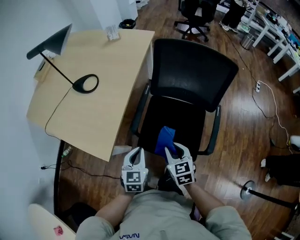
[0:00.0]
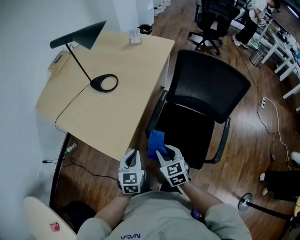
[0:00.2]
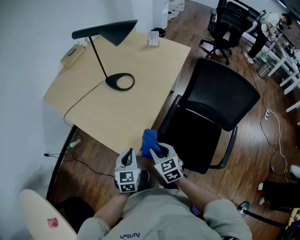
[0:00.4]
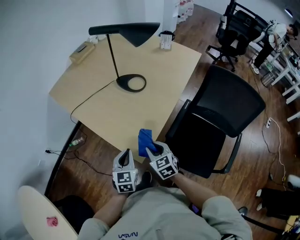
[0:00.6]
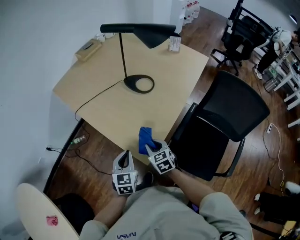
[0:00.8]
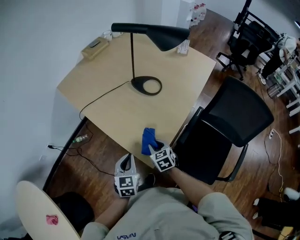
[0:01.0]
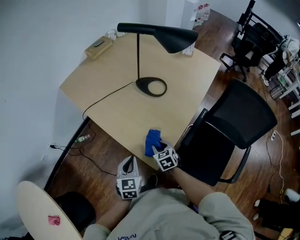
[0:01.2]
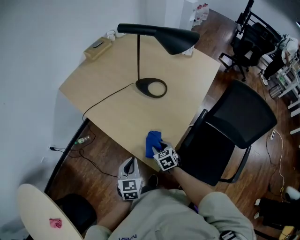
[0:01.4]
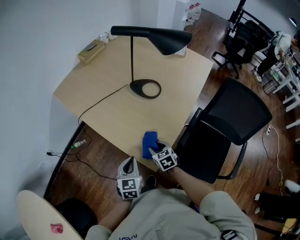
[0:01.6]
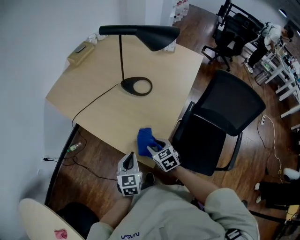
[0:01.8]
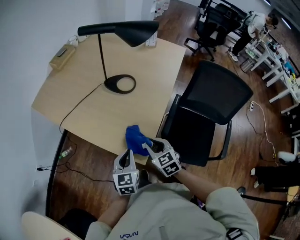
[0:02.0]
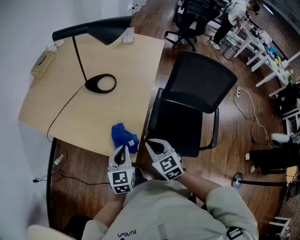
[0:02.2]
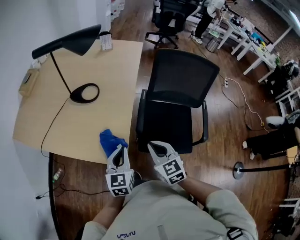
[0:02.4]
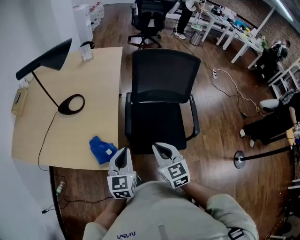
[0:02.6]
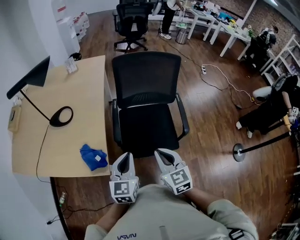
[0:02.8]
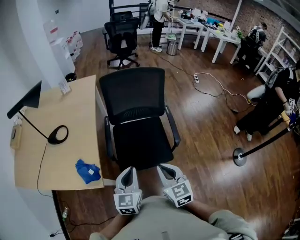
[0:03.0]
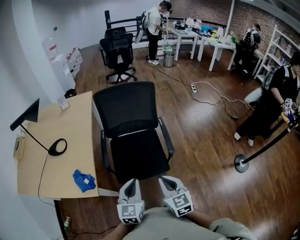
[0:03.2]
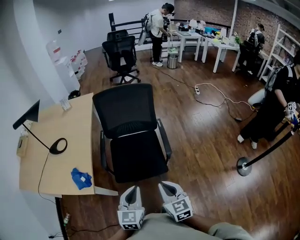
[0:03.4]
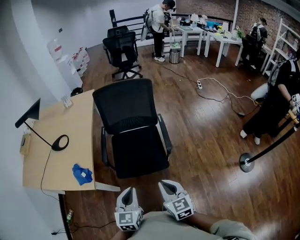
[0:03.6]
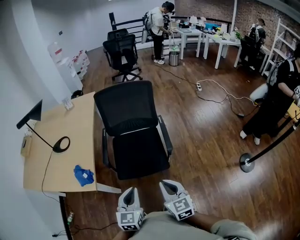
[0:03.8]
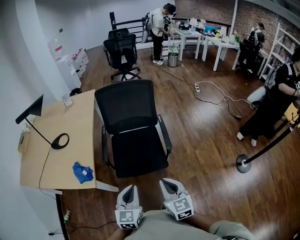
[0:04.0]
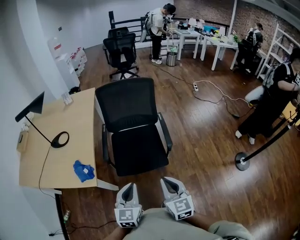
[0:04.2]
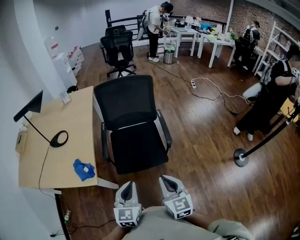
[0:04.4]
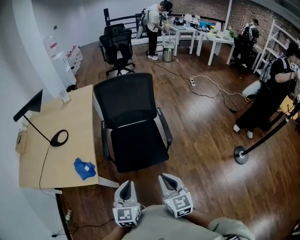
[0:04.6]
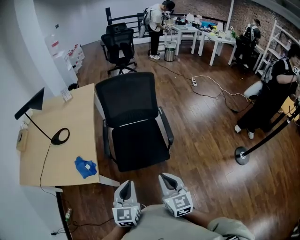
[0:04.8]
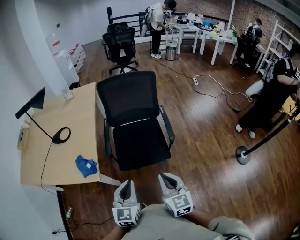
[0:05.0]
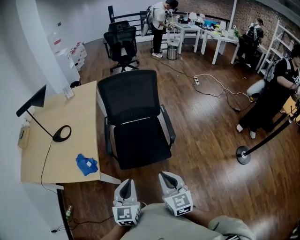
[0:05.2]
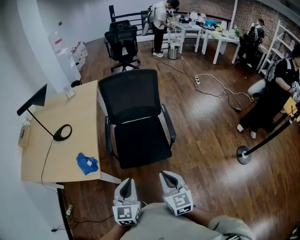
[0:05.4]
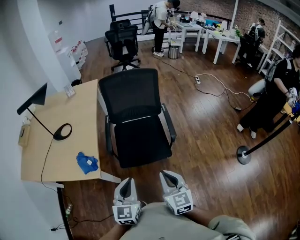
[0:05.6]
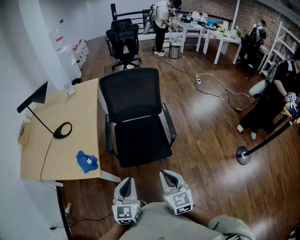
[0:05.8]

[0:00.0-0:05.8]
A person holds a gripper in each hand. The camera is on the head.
0:00.0 to 0:01.4: The right gripper shifts by about 40 cm, and swivels roughly 30 degrees. Meanwhile the left gripper ends up about 40 cm from where it was, and turns by approximately 20 degrees.
0:01.4 to 0:02.8: The left gripper moves roughly 35 cm, and changes its angle by some 50 degrees; the right gripper changes place by some 40 cm, rotates roughly 50 degrees, and closes its fingers.
0:02.8 to 0:04.4: The right gripper moves to the right and backward, roughly 25 cm; the left gripper is displaced backward and to the right by roughly 20 cm.
0:04.4 to 0:05.8: There are only small adjustments of the grippers.

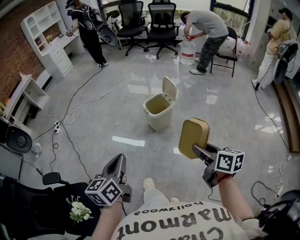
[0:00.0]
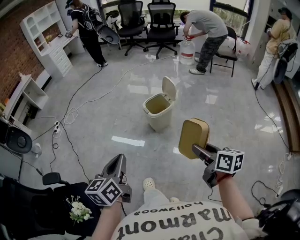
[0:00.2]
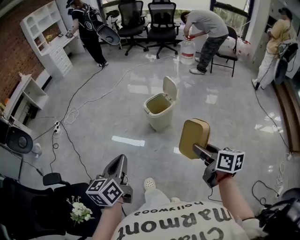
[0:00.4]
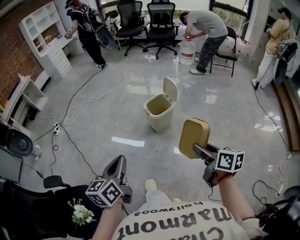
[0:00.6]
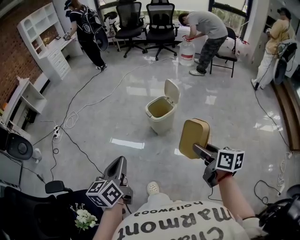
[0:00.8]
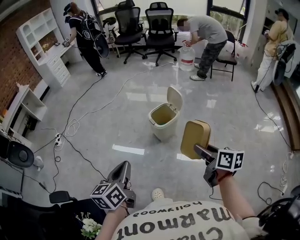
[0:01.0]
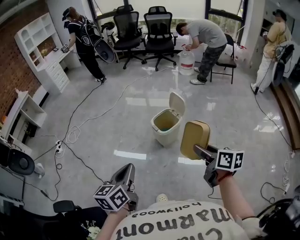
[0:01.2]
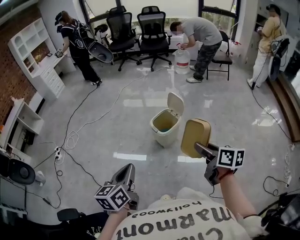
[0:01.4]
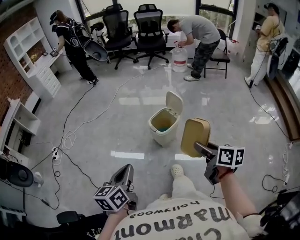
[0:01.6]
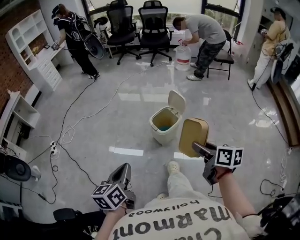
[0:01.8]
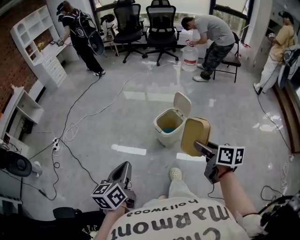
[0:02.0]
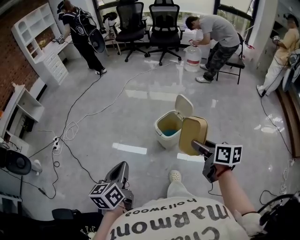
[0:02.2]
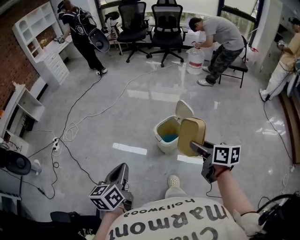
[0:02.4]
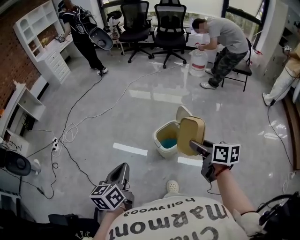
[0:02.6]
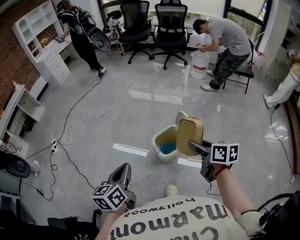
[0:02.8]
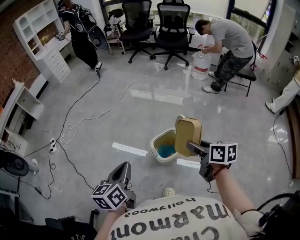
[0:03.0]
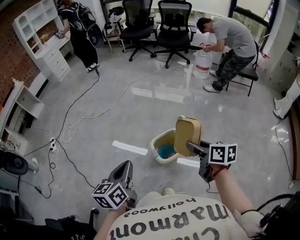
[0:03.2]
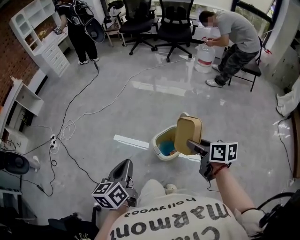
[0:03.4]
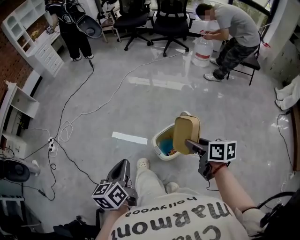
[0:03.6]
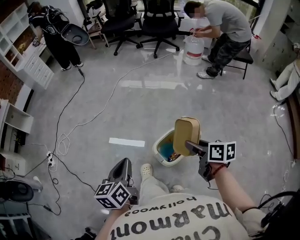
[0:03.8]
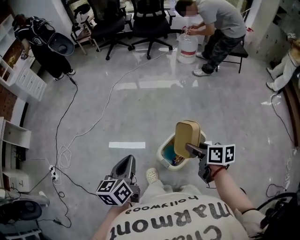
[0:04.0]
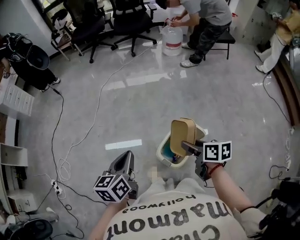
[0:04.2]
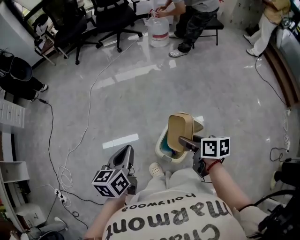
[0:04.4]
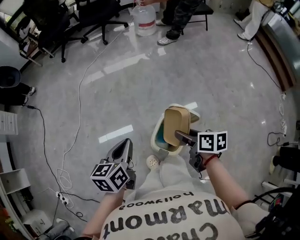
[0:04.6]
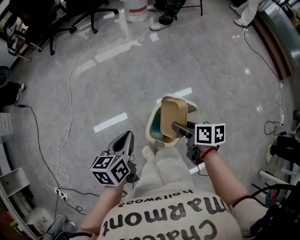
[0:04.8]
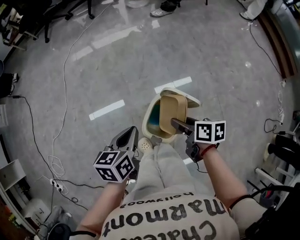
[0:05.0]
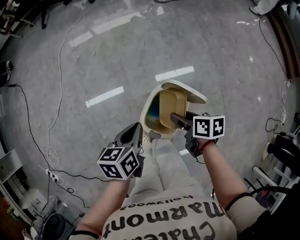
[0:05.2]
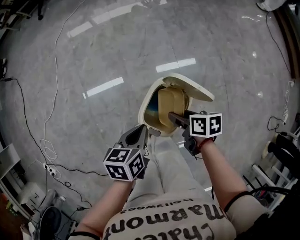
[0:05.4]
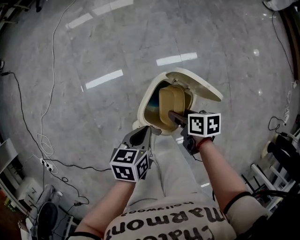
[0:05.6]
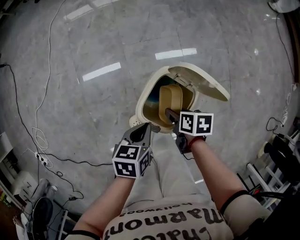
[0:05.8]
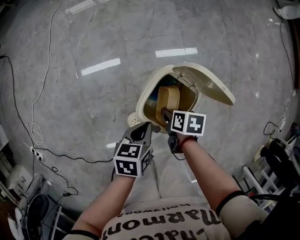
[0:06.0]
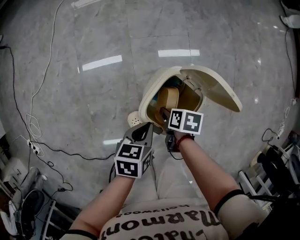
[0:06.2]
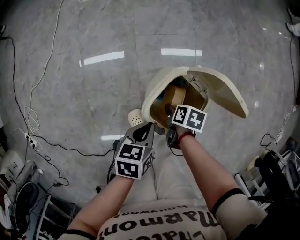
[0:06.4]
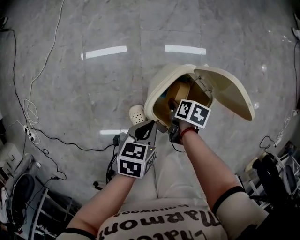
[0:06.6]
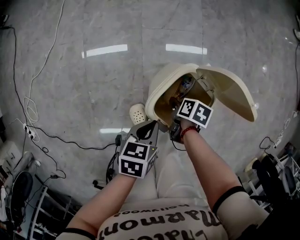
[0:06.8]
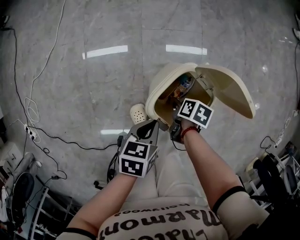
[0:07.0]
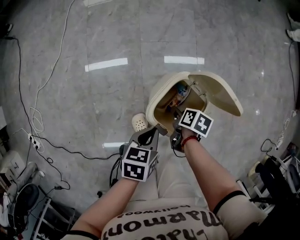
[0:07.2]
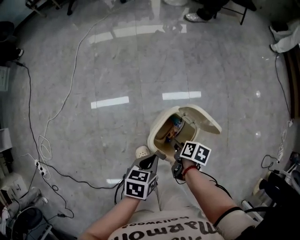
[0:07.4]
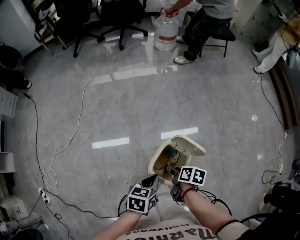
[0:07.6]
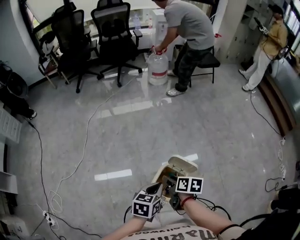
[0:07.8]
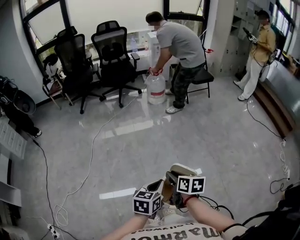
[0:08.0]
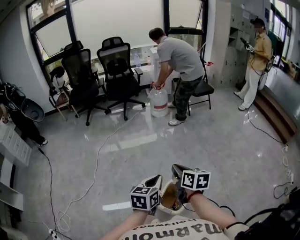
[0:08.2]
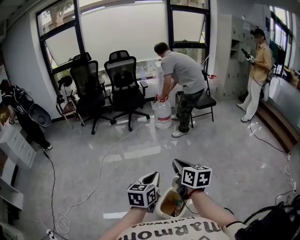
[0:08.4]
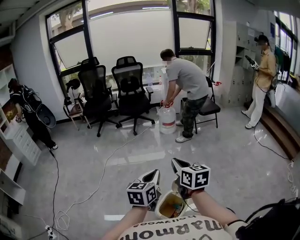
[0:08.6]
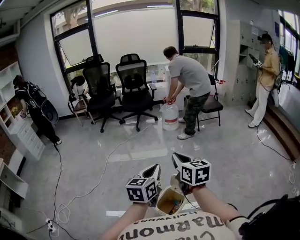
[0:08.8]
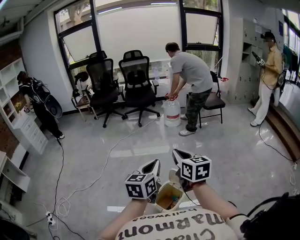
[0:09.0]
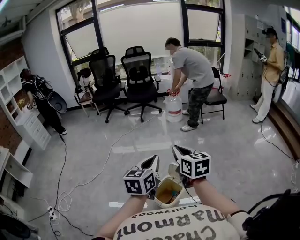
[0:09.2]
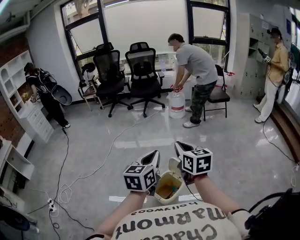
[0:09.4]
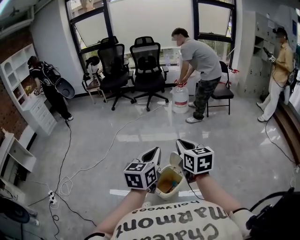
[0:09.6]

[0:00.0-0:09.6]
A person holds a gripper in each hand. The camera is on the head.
0:00.0 to 0:01.6: The two grippers go some 15 cm forward and to the left.
0:01.6 to 0:03.2: Both grippers move forward, some 25 cm.
0:03.2 to 0:04.8: The left gripper changes place by some 30 cm, and changes its angle by some 50 degrees, while the right gripper is displaced downward by roughly 15 cm, and rotates roughly 40 degrees.
0:04.8 to 0:06.4: The two grippers go about 30 cm downward. The left gripper swivels some 20 degrees. The right gripper swivels some 30 degrees.
0:06.4 to 0:08.0: The grippers both shift upward by roughly 35 cm. The right gripper points its fingers roughly 30 degrees further upward, and closes; the left gripper turns by some 30 degrees.
0:08.0 to 0:09.6: The two grippers go approximately 20 cm upward and backward. The right gripper swivels some 40 degrees, and closes its fingers. The left gripper rotates about 30 degrees.

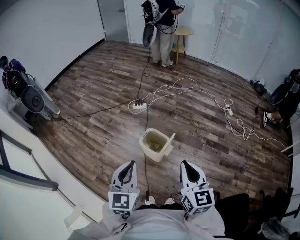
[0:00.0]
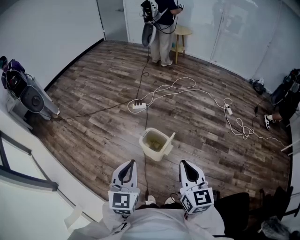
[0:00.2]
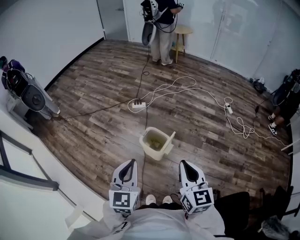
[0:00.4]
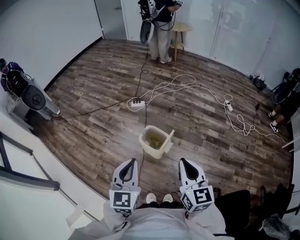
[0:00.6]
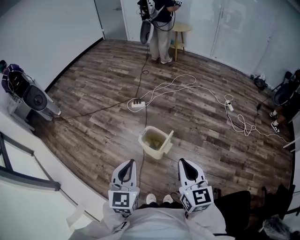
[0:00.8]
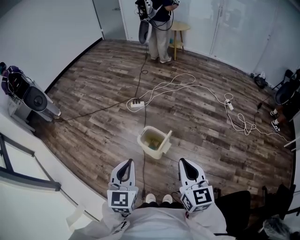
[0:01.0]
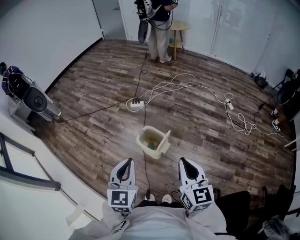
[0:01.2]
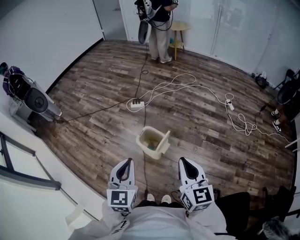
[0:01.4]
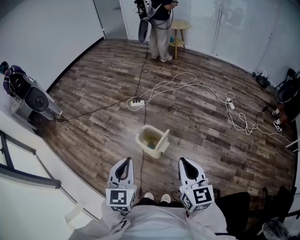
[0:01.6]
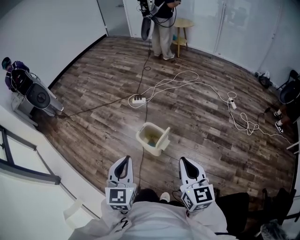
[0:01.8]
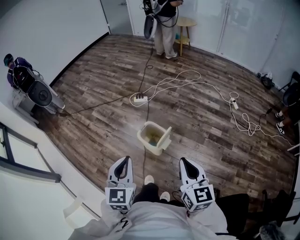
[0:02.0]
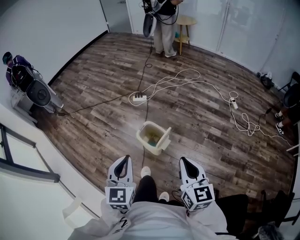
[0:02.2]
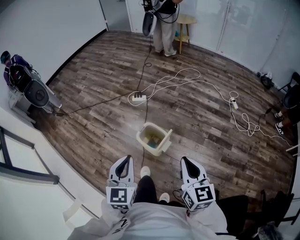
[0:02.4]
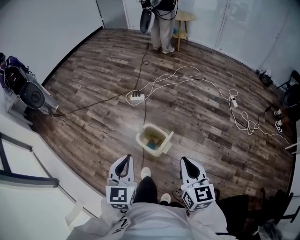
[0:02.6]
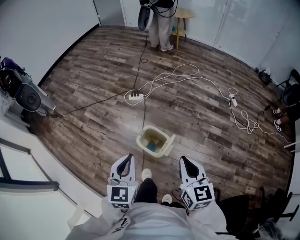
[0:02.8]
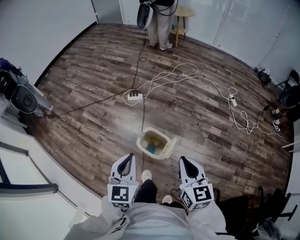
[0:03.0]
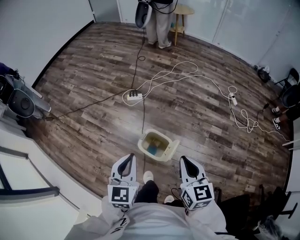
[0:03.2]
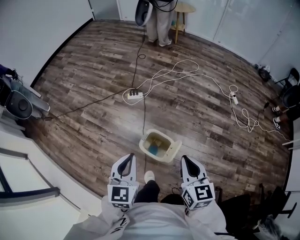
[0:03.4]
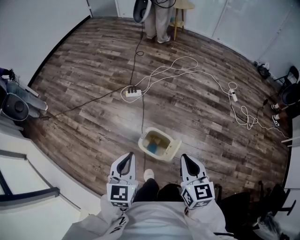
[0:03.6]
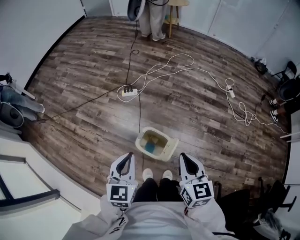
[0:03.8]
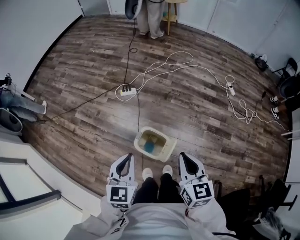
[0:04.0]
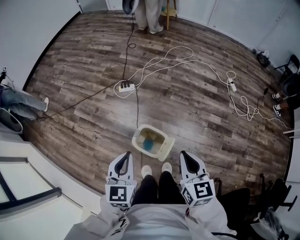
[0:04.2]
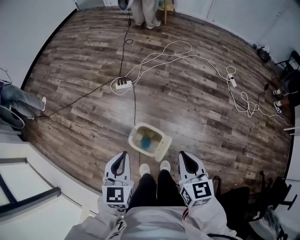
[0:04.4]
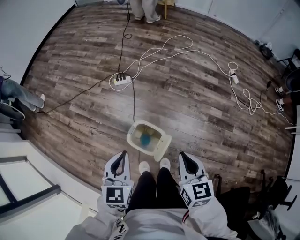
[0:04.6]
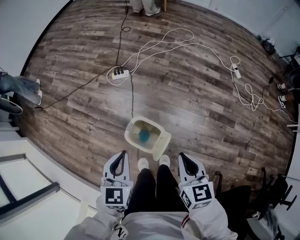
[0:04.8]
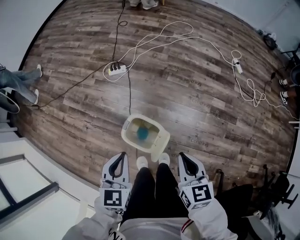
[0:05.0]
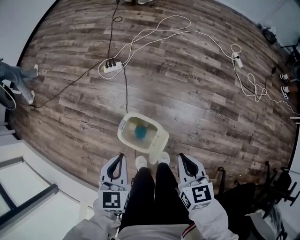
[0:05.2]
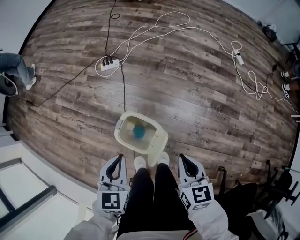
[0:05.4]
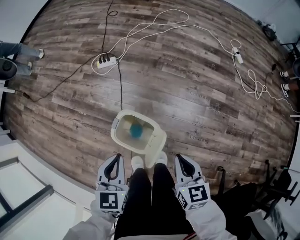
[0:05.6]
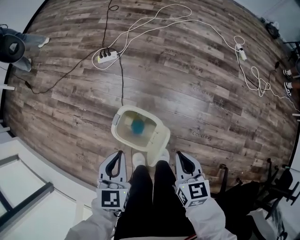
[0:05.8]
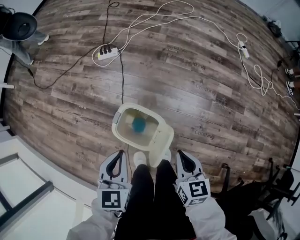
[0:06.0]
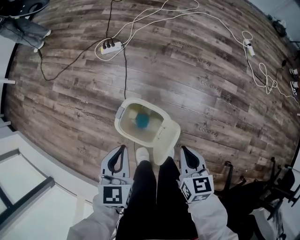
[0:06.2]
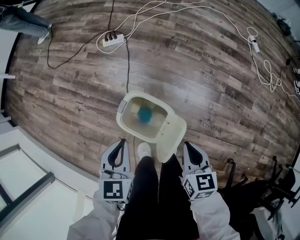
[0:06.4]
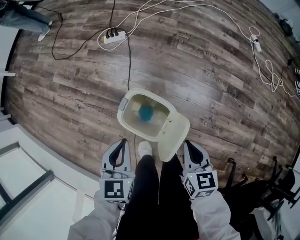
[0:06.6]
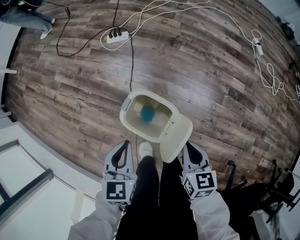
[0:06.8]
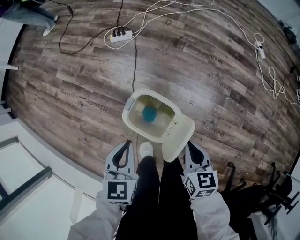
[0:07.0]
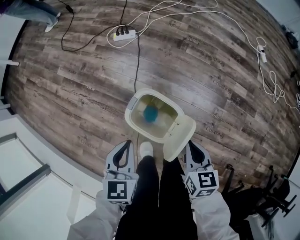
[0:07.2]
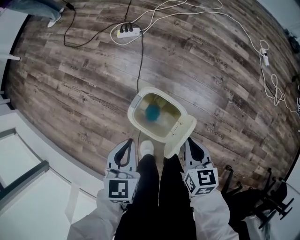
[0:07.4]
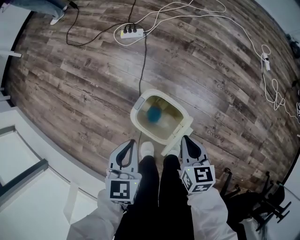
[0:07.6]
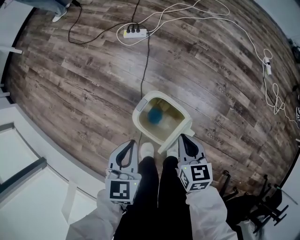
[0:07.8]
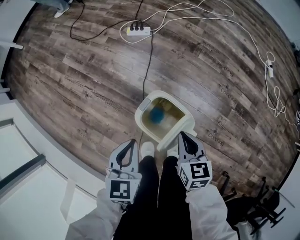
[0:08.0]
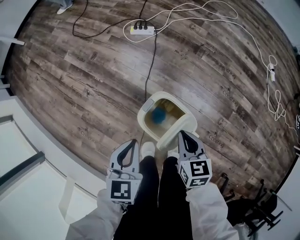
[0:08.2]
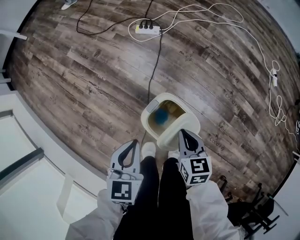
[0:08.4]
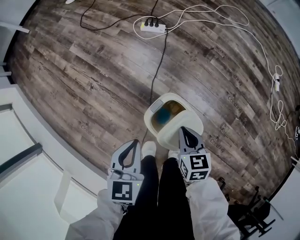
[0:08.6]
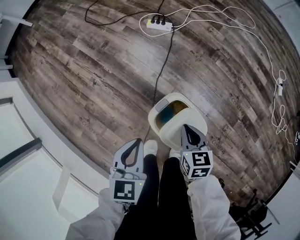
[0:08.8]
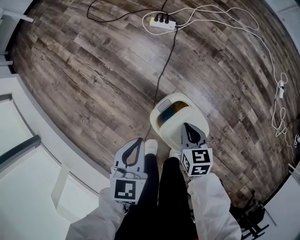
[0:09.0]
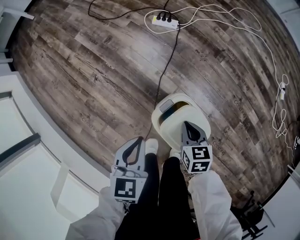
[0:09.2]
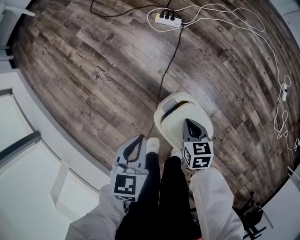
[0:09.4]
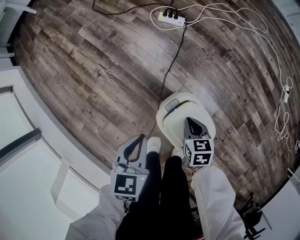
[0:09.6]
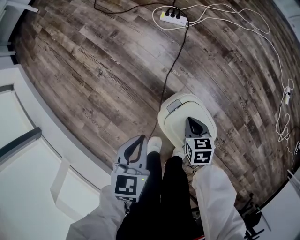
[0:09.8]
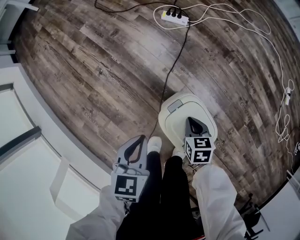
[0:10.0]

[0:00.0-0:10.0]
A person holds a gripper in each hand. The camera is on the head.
0:00.0 to 0:01.4: The grippers both shift to the right by some 5 cm.
0:01.4 to 0:02.8: The grippers both shift forward by some 15 cm.
0:02.8 to 0:04.2: Both grippers move forward and downward, about 15 cm.
0:04.2 to 0:05.8: The two grippers go some 30 cm downward.
0:05.8 to 0:07.2: Both grippers travel together downward and to the left, about 10 cm.
0:07.2 to 0:08.6: The left gripper is displaced to the left by roughly 10 cm, while the right gripper shifts about 20 cm to the left, forward and downward.
0:08.6 to 0:10.0: The right gripper heads downward, covering some 10 cm. Meanwhile the left gripper travels downward and to the left by some 10 cm.
